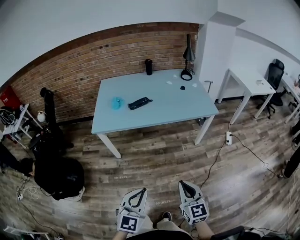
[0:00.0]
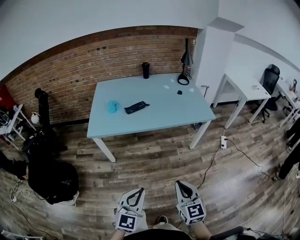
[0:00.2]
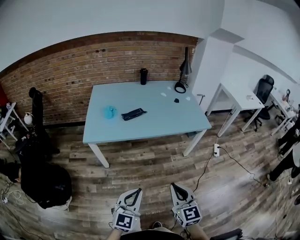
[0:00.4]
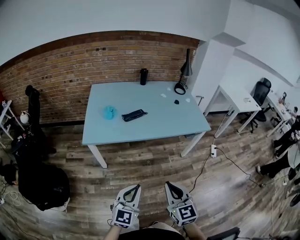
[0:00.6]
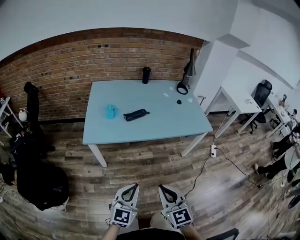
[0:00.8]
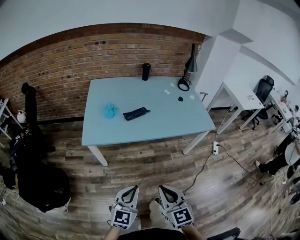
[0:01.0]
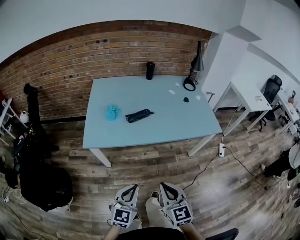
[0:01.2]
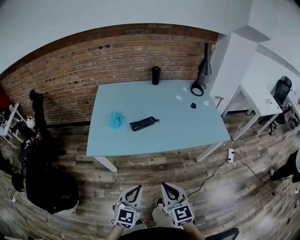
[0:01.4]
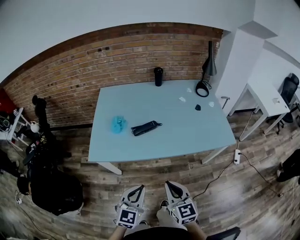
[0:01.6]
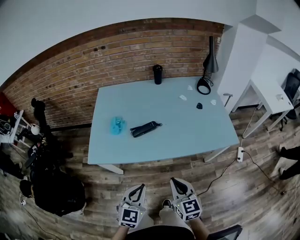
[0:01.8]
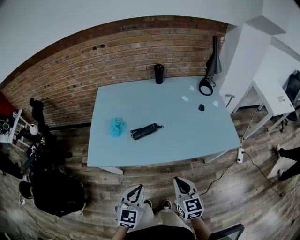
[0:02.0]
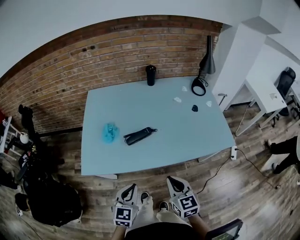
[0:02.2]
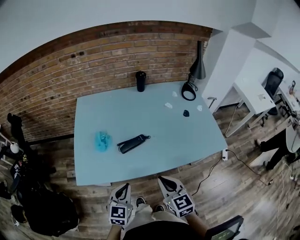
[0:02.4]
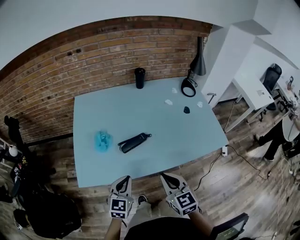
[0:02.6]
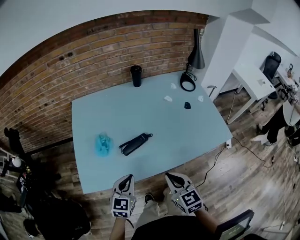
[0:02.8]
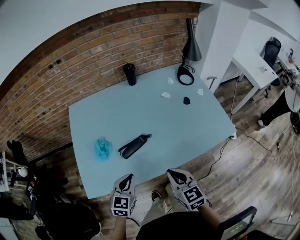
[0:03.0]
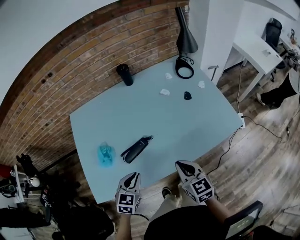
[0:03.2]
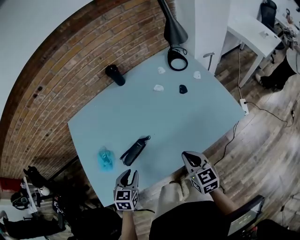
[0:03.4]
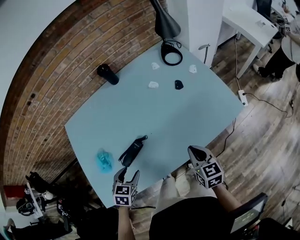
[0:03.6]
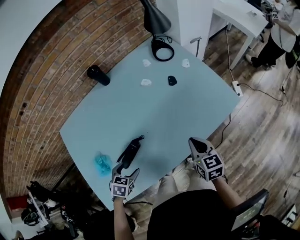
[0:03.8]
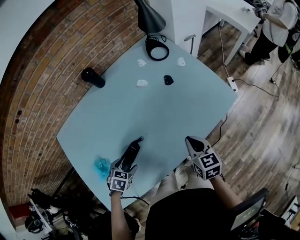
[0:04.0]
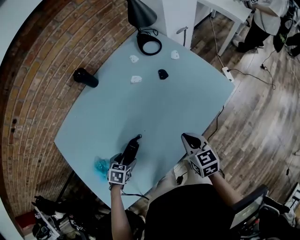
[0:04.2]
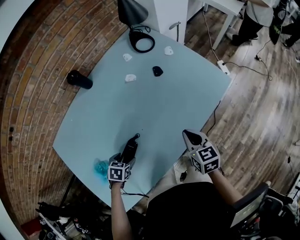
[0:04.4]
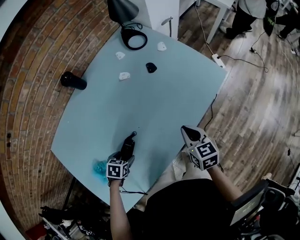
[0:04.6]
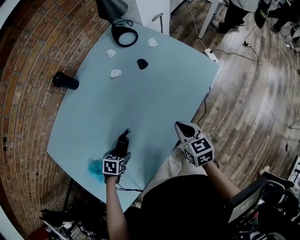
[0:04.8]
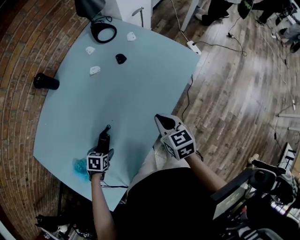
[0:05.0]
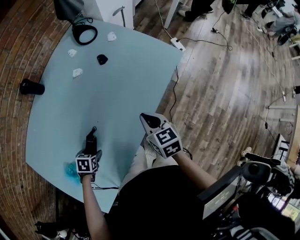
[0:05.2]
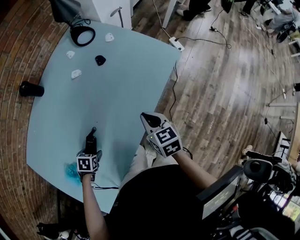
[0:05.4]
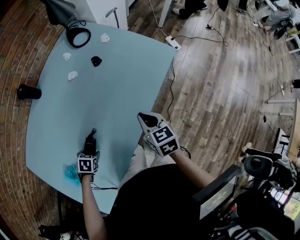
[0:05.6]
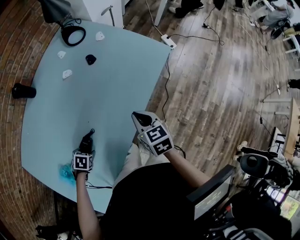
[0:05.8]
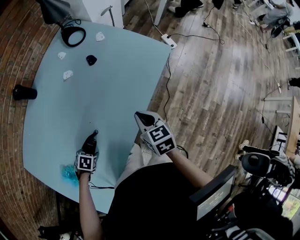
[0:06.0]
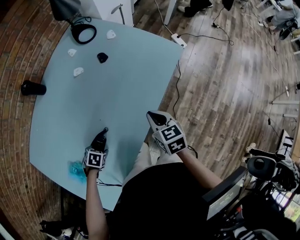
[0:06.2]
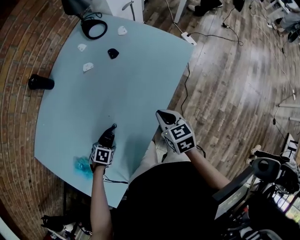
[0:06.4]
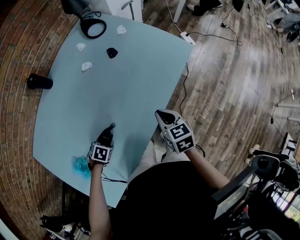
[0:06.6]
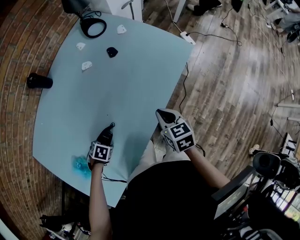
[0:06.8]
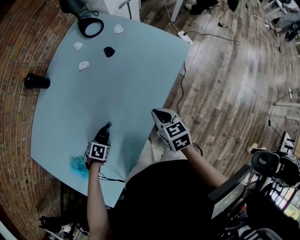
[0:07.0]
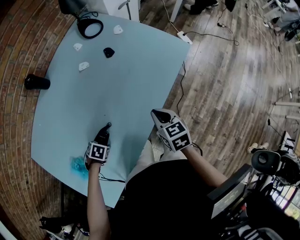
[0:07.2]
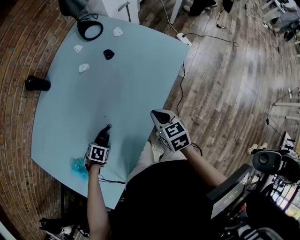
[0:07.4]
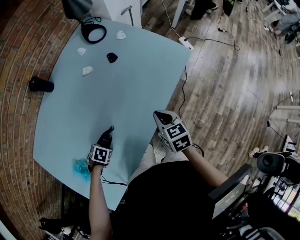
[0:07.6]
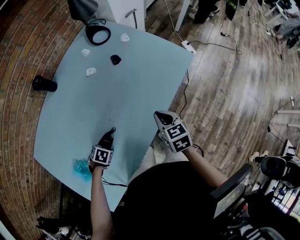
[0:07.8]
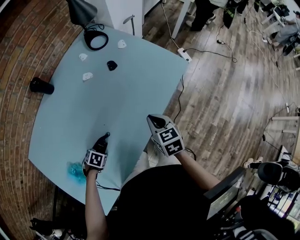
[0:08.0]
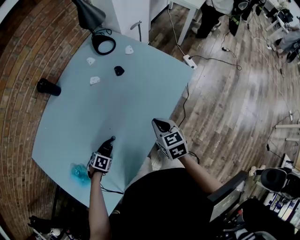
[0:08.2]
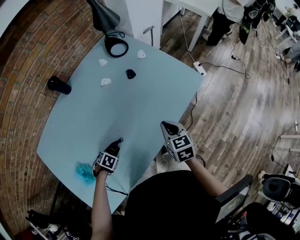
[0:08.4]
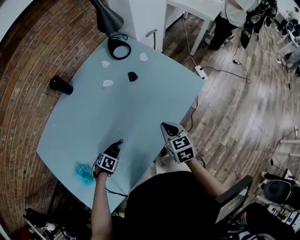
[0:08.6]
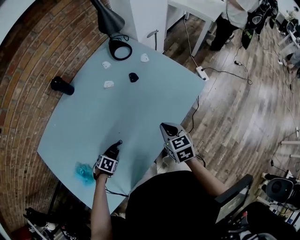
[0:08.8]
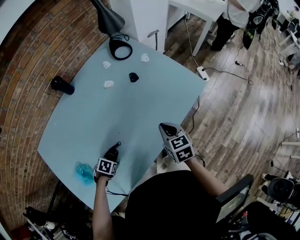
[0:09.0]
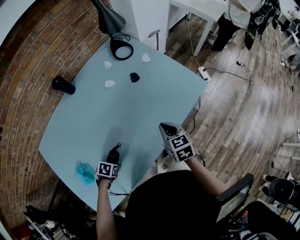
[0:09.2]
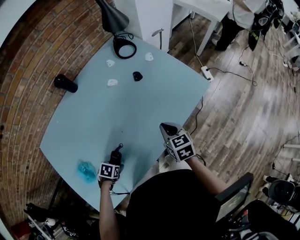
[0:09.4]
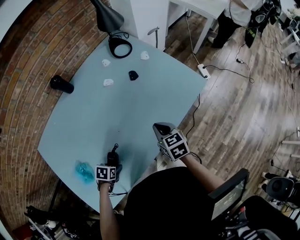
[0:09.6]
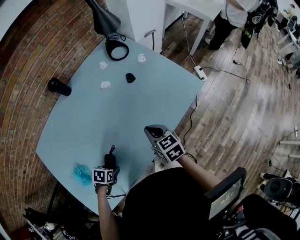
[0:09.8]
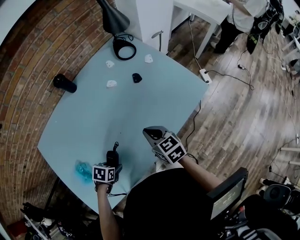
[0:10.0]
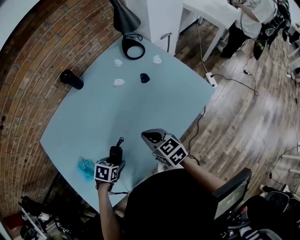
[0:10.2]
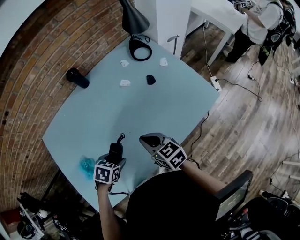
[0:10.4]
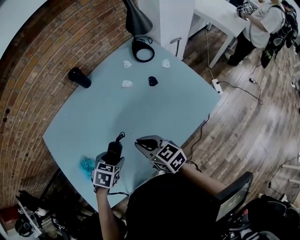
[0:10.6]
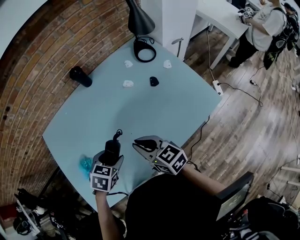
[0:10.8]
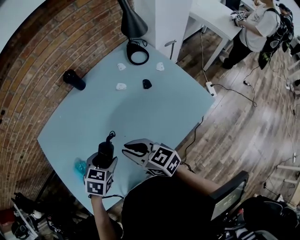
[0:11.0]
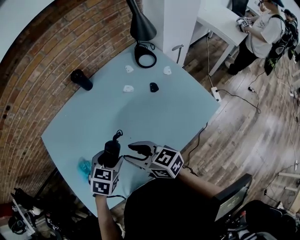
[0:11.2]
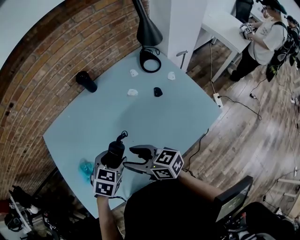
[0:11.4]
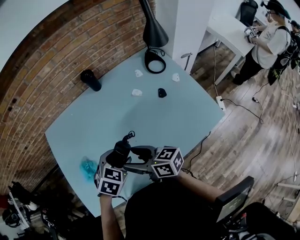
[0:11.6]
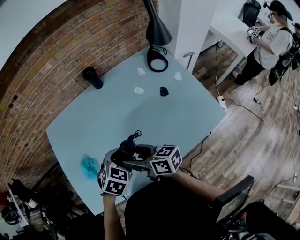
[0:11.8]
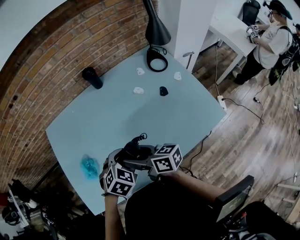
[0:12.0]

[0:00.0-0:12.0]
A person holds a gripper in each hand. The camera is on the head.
0:00.0 to 0:01.6: Both grippers move forward, about 30 cm.
0:01.6 to 0:03.0: The grippers both shift forward by approximately 25 cm.
0:03.0 to 0:04.4: The right gripper shifts by approximately 20 cm, and changes its angle by roughly 40 degrees. The left gripper ends up roughly 25 cm from where it was, points its fingers about 40 degrees further downward, and opens.
0:04.4 to 0:06.0: The left gripper heads downward, covering about 5 cm, and changes its angle by approximately 20 degrees; the right gripper changes place by approximately 5 cm.
0:06.0 to 0:07.6: The grippers stay close to where they were, moving slightly.
0:07.6 to 0:09.0: The right gripper moves roughly 5 cm.
0:09.0 to 0:10.4: The left gripper is displaced upward by roughly 15 cm. Meanwhile the right gripper ends up approximately 15 cm from where it was, and rotates about 30 degrees.
0:10.4 to 0:12.0: The left gripper goes about 10 cm upward and to the right, and turns by roughly 20 degrees. The right gripper heads to the left and upward, covering roughly 10 cm, rotates approximately 40 degrees, and opens.

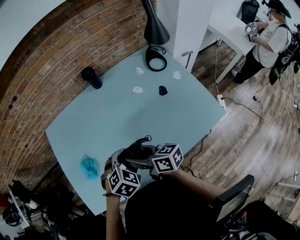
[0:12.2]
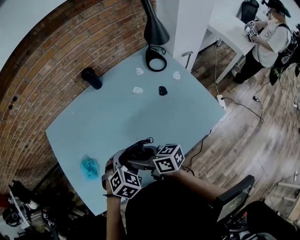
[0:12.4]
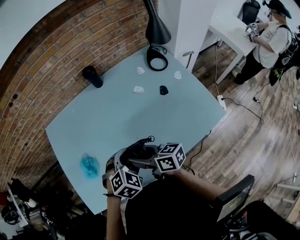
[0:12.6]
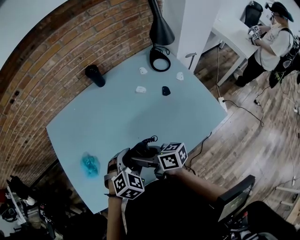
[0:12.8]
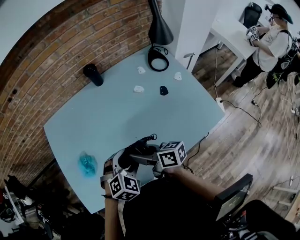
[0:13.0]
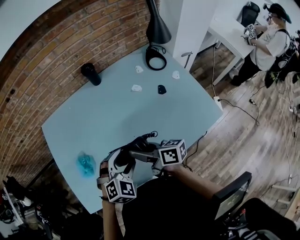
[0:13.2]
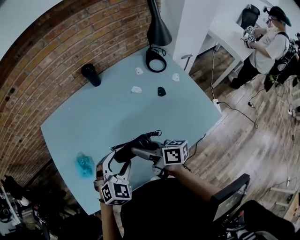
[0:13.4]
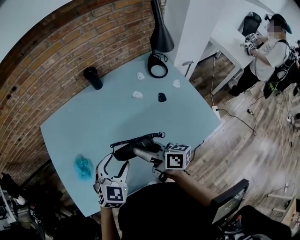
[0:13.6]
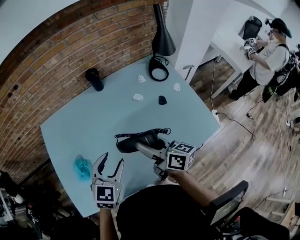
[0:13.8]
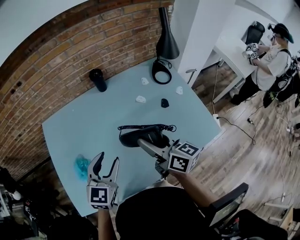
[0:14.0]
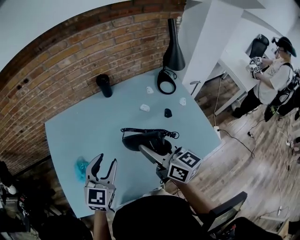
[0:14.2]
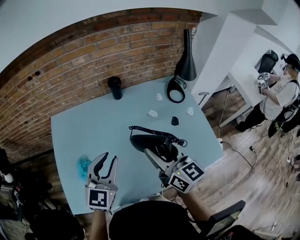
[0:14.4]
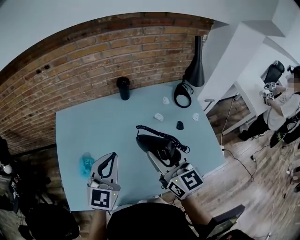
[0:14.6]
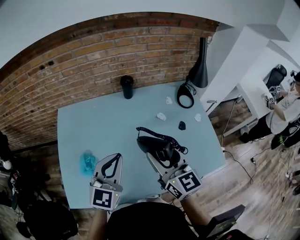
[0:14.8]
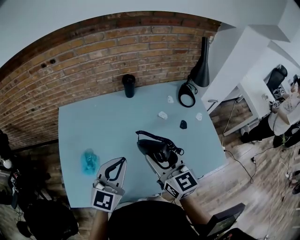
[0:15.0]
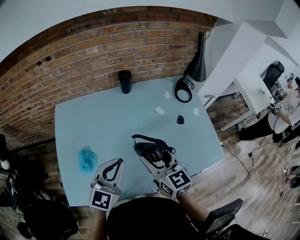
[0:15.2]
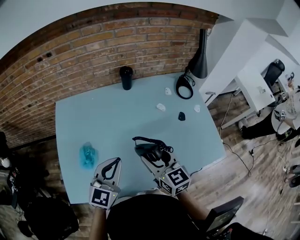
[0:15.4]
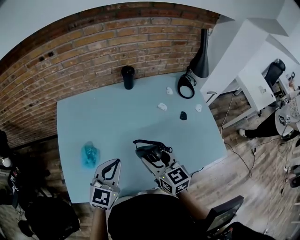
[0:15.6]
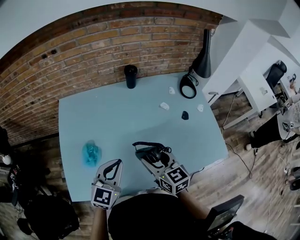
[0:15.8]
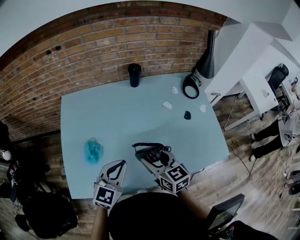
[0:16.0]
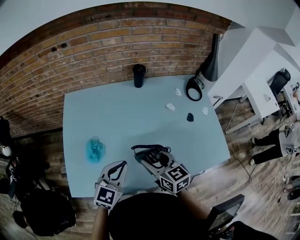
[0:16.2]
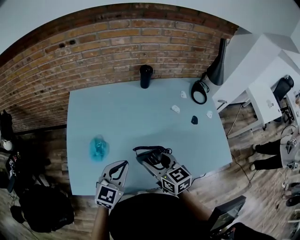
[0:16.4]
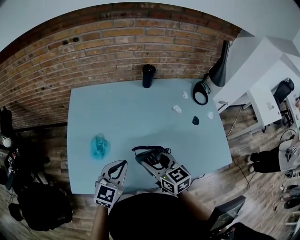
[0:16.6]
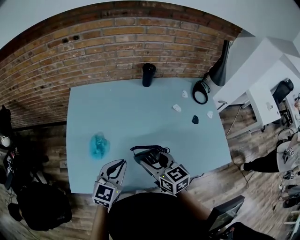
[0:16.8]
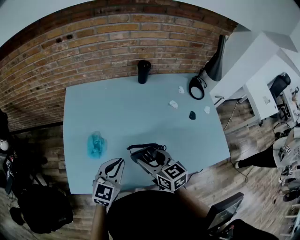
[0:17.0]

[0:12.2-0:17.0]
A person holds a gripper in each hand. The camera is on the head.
0:12.2 to 0:13.8: The right gripper goes roughly 10 cm to the right, while the left gripper travels upward by approximately 5 cm, and tilts its fingers roughly 30 degrees upward.
0:13.8 to 0:15.4: Both grippers move to the left, some 5 cm. The right gripper reaches roughly 10 cm upward, then returns, and swivels some 40 degrees, while the left gripper closes.
0:15.4 to 0:17.0: The left gripper goes about 10 cm to the left and downward. Meanwhile the right gripper shifts approximately 10 cm to the left.

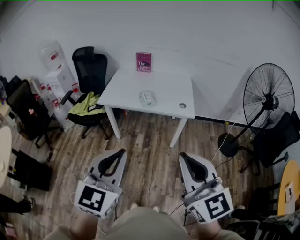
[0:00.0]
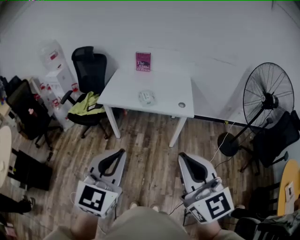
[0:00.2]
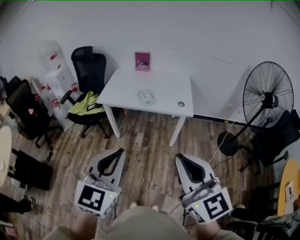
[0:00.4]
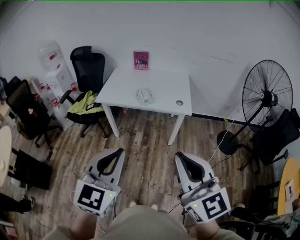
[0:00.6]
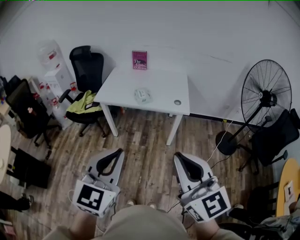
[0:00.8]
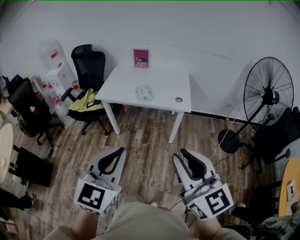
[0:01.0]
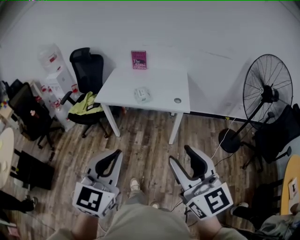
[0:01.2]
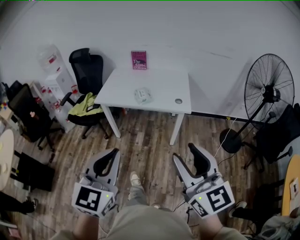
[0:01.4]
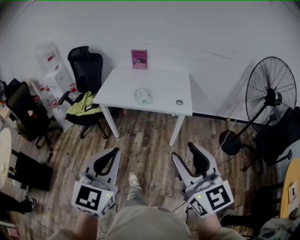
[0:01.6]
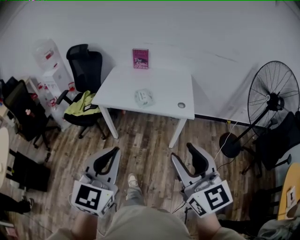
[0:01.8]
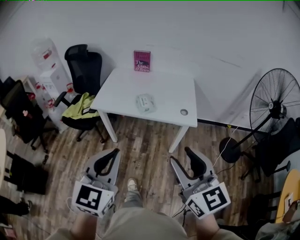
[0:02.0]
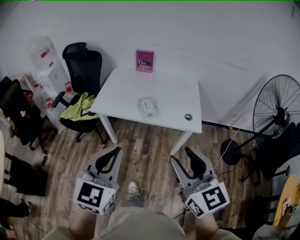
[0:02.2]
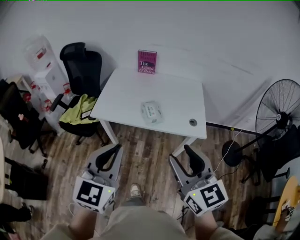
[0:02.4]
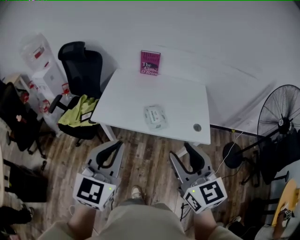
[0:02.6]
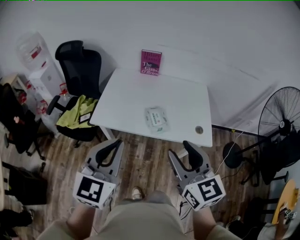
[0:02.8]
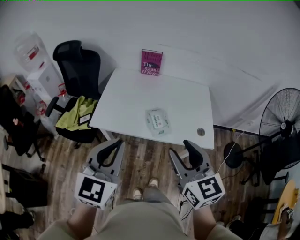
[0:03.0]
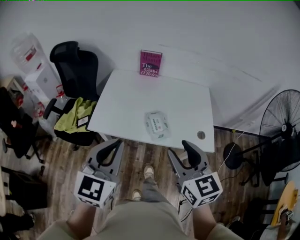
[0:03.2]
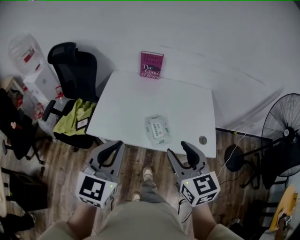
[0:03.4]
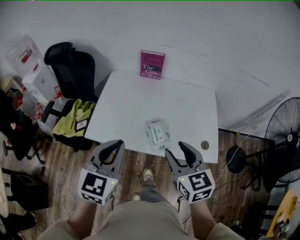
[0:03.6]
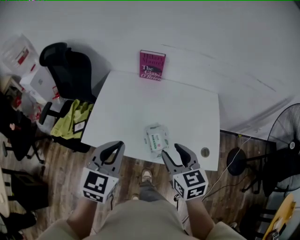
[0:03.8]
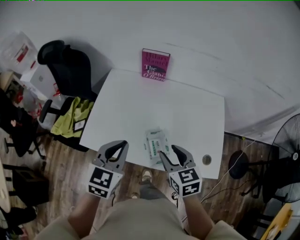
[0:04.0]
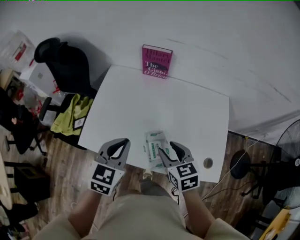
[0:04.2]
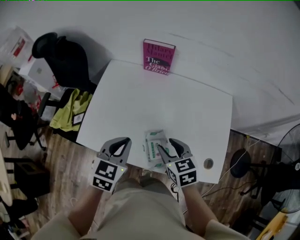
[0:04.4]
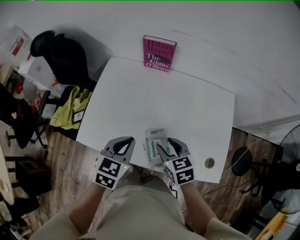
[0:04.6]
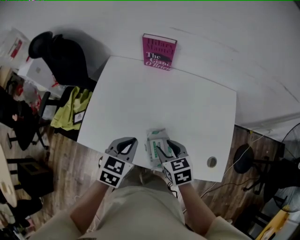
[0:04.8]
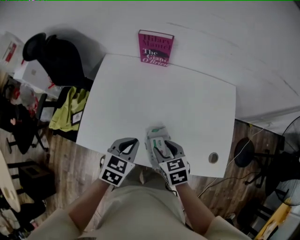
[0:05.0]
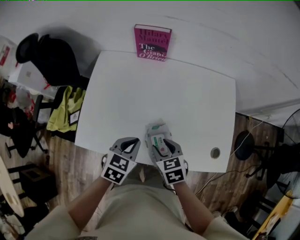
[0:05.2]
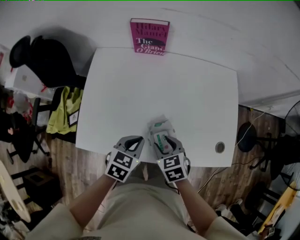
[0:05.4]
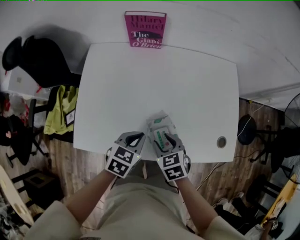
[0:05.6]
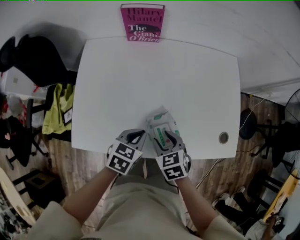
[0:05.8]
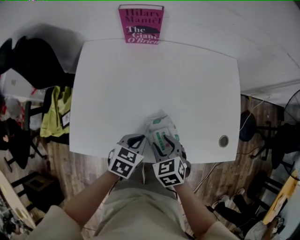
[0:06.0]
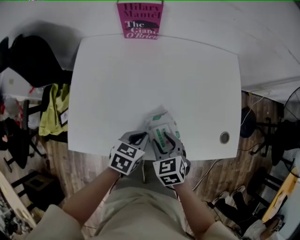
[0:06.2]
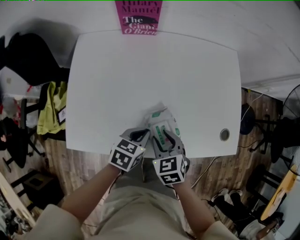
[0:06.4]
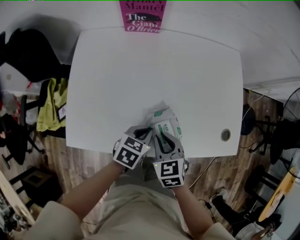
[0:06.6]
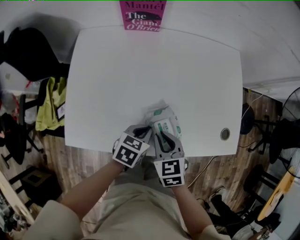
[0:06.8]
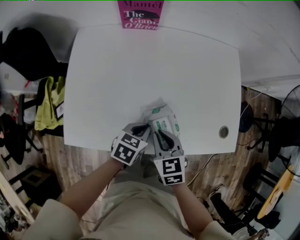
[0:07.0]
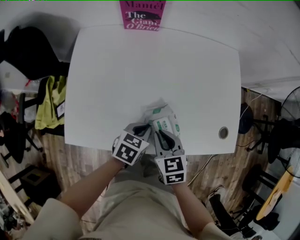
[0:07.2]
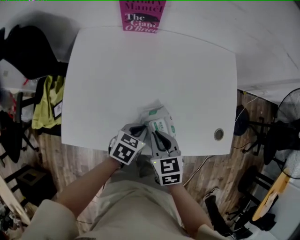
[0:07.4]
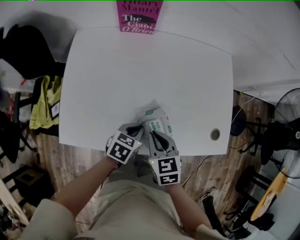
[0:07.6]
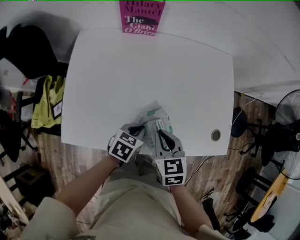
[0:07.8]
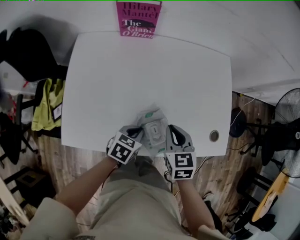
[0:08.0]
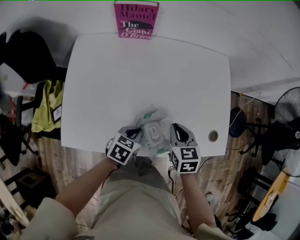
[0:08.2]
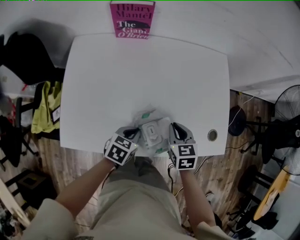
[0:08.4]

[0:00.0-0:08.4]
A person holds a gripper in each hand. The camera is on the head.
0:00.0 to 0:01.4: The right gripper shifts roughly 5 cm to the right, and opens.
0:01.4 to 0:02.8: Both grippers are carried forward, roughly 40 cm.
0:02.8 to 0:04.2: Both grippers move forward and downward, roughly 35 cm. The left gripper turns by roughly 20 degrees, while the right gripper swivels some 30 degrees.
0:04.2 to 0:05.6: The two grippers go about 15 cm downward. The left gripper changes its angle by some 30 degrees.
0:05.6 to 0:07.0: The right gripper closes its fingers; the left gripper goes about 5 cm downward.
0:07.0 to 0:08.4: The right gripper shifts about 10 cm to the right and forward.
